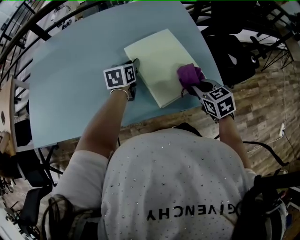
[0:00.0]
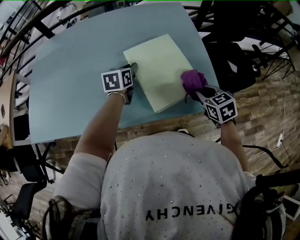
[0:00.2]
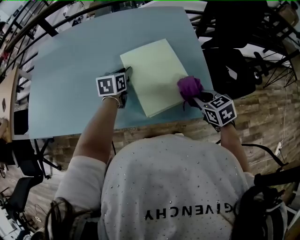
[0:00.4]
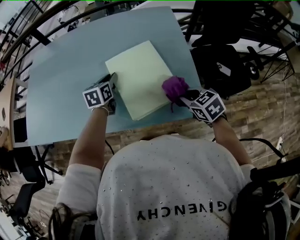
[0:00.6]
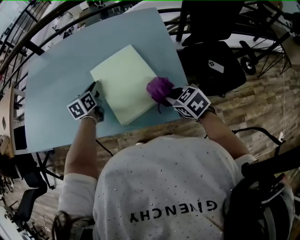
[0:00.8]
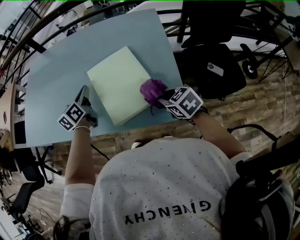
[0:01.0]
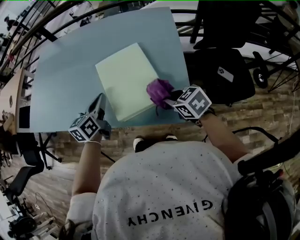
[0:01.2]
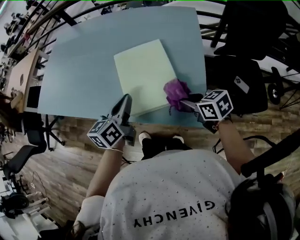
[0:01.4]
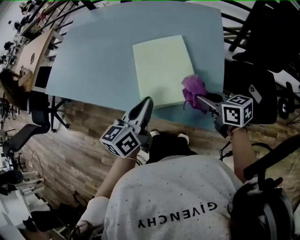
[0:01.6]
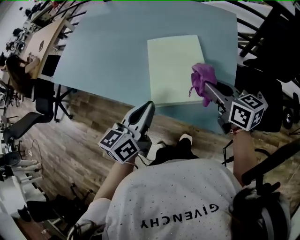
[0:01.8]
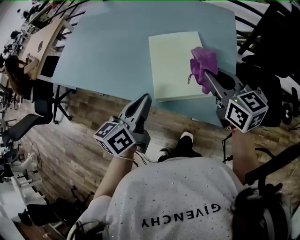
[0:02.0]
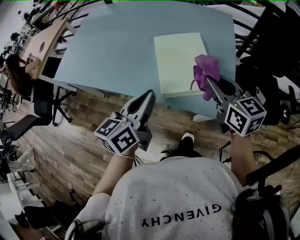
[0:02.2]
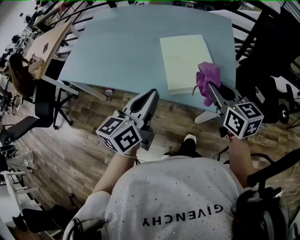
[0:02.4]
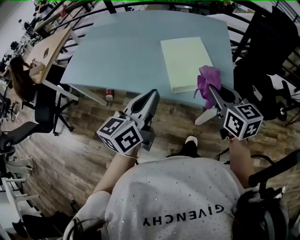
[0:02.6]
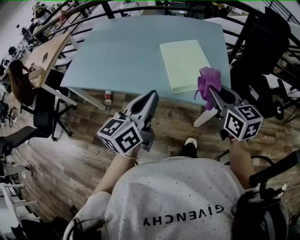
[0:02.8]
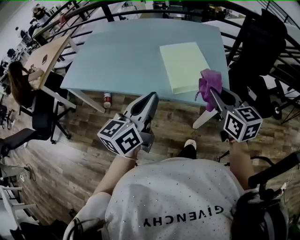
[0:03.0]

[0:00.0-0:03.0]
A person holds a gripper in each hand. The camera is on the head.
0:00.0 to 0:01.6: The left gripper moves roughly 25 cm, changes its angle by some 30 degrees, and closes, while the right gripper changes place by roughly 10 cm, and swivels some 40 degrees.
0:01.6 to 0:03.0: The right gripper moves upward, backward and to the left, approximately 20 cm, and swivels some 40 degrees. The left gripper goes roughly 20 cm to the left, backward and upward.

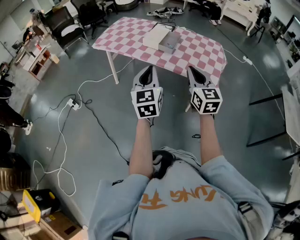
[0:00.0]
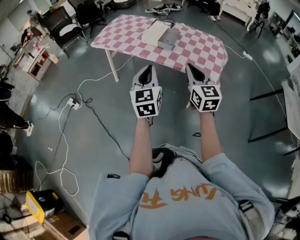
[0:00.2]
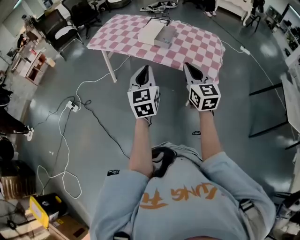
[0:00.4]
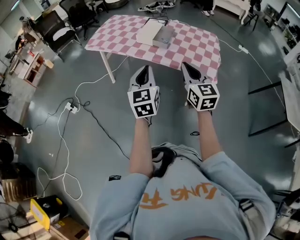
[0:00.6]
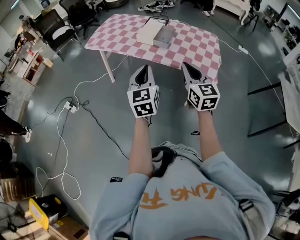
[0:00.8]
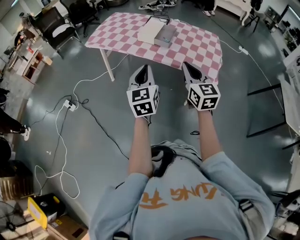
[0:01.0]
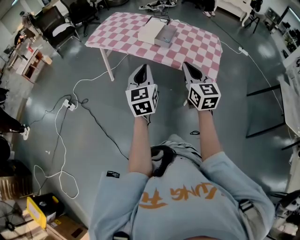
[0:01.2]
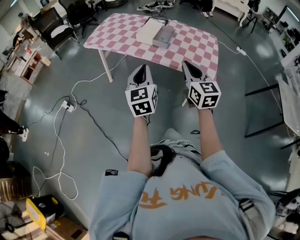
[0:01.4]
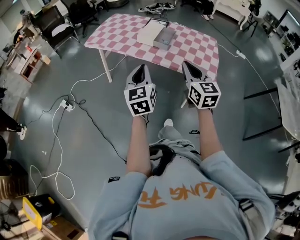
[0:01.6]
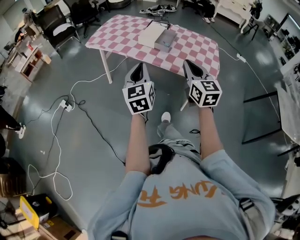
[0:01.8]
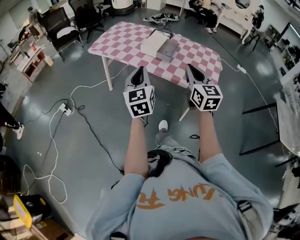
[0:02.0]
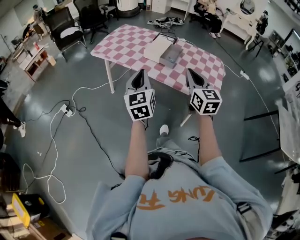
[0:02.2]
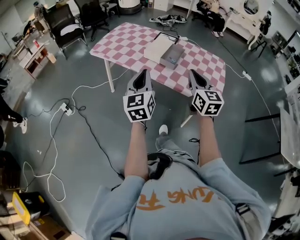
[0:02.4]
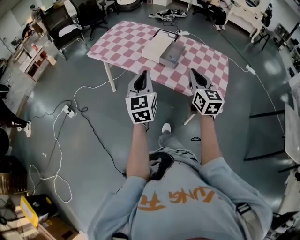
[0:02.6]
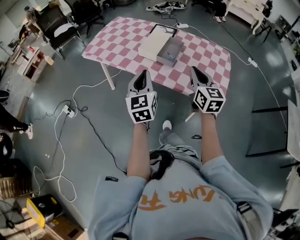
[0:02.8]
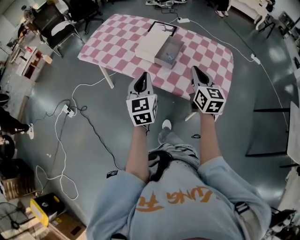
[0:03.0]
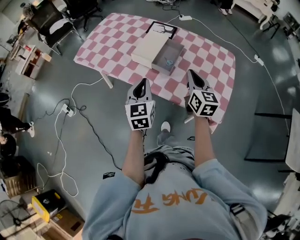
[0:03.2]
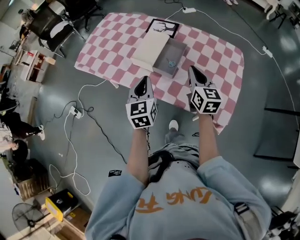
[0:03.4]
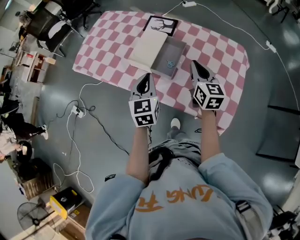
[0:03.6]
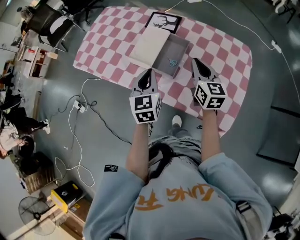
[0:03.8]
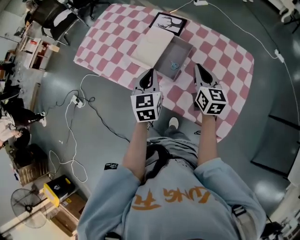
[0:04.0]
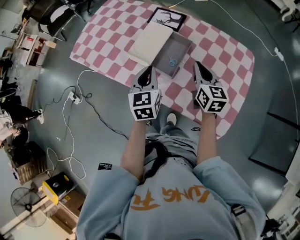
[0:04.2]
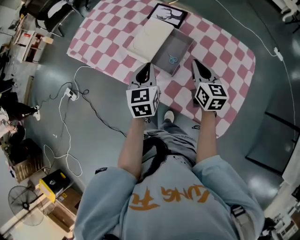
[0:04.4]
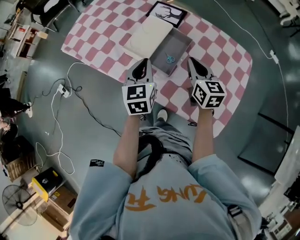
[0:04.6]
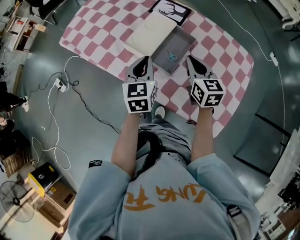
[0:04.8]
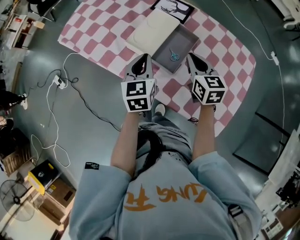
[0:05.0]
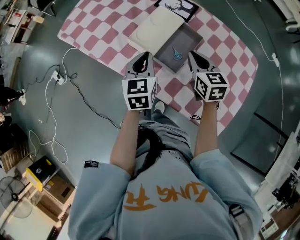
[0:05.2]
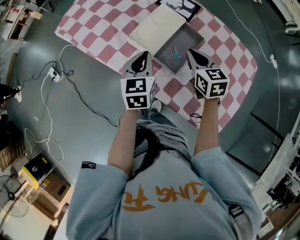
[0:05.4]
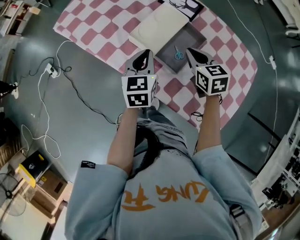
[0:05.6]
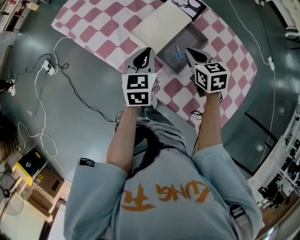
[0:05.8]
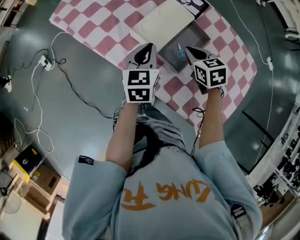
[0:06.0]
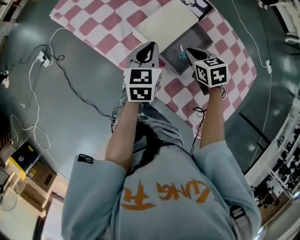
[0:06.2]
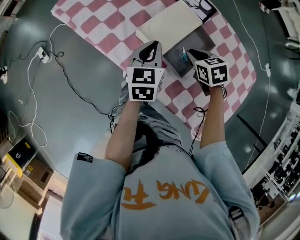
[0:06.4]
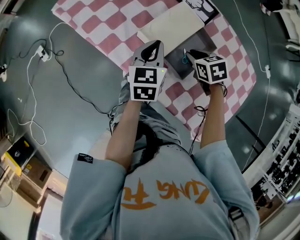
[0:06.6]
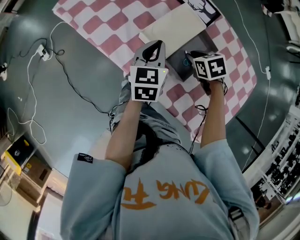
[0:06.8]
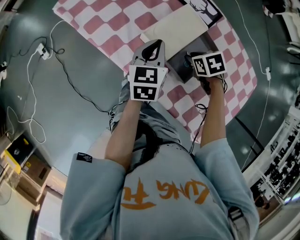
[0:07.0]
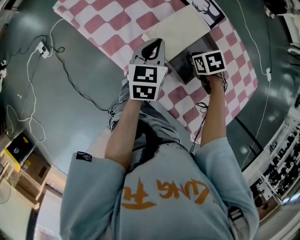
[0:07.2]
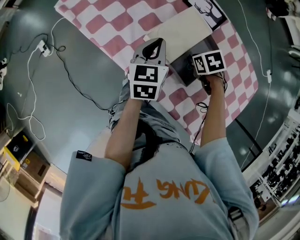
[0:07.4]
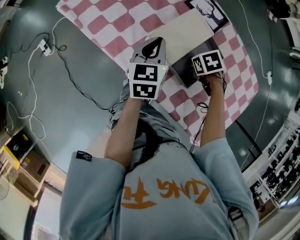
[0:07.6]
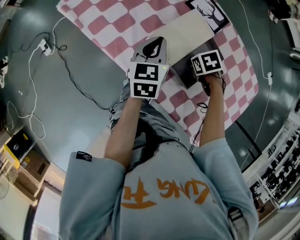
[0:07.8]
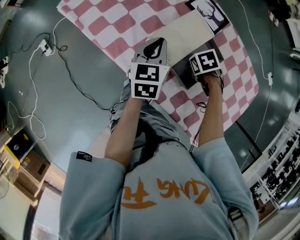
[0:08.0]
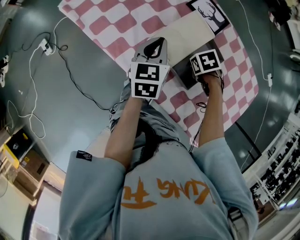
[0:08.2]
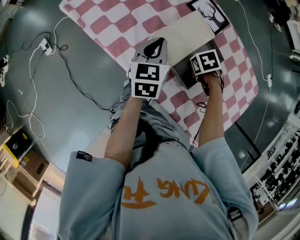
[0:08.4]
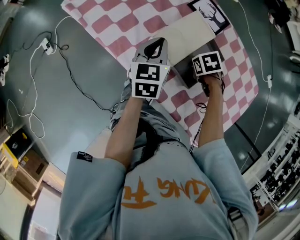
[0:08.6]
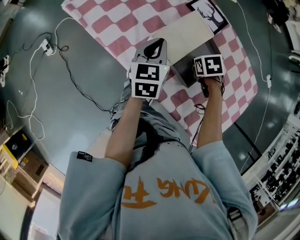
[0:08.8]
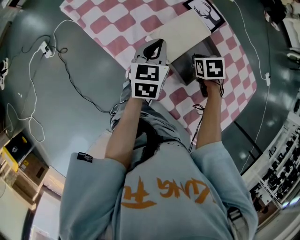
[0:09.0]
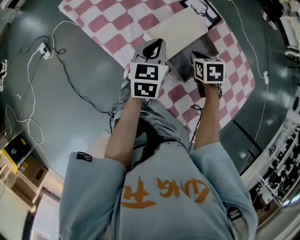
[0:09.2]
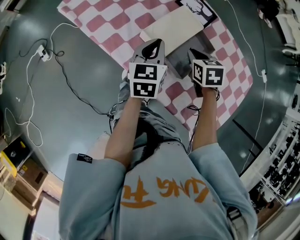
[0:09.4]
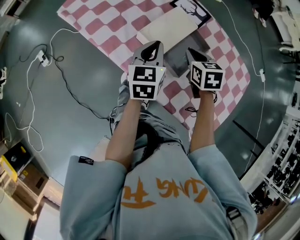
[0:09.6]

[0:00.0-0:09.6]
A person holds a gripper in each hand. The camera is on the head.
0:00.0 to 0:01.6: The left gripper ends up approximately 5 cm from where it was.
0:01.6 to 0:03.2: The left gripper travels forward by some 30 cm; the right gripper is displaced forward and to the right by about 35 cm.
0:03.2 to 0:04.8: The two grippers go about 20 cm forward and downward.
0:04.8 to 0:06.4: The left gripper goes roughly 10 cm forward and downward; the right gripper shifts about 15 cm downward, forward and to the left, and points its fingers roughly 30 degrees further downward.
0:06.4 to 0:08.0: The right gripper heads downward, covering about 5 cm, and turns by roughly 30 degrees. The left gripper moves about 5 cm.
0:08.0 to 0:09.6: The right gripper moves upward, approximately 15 cm, and tilts its fingers about 40 degrees upward, while the left gripper ends up roughly 10 cm from where it was.

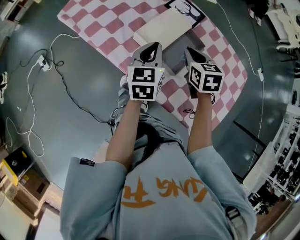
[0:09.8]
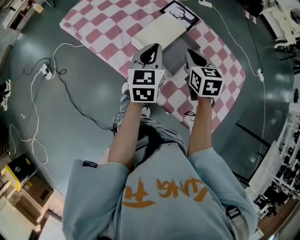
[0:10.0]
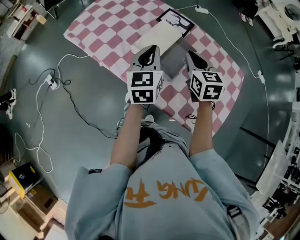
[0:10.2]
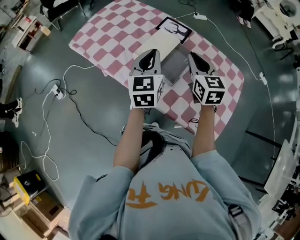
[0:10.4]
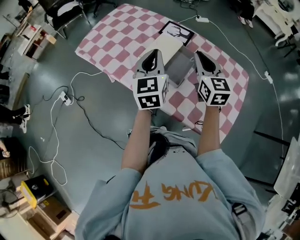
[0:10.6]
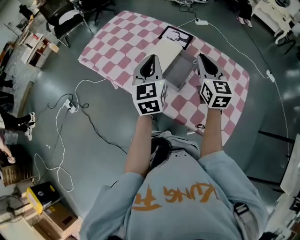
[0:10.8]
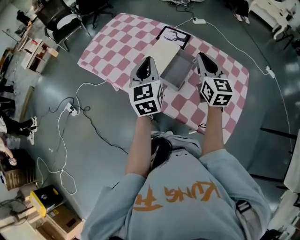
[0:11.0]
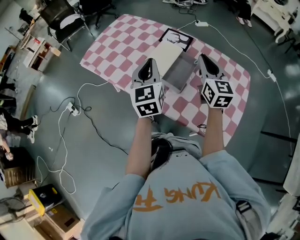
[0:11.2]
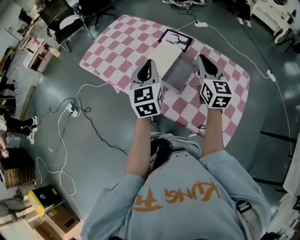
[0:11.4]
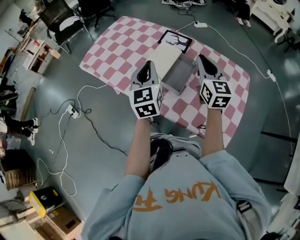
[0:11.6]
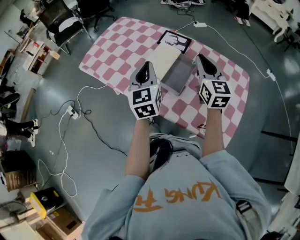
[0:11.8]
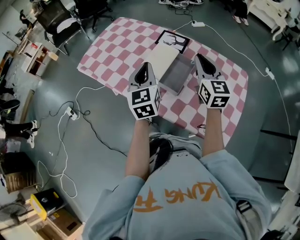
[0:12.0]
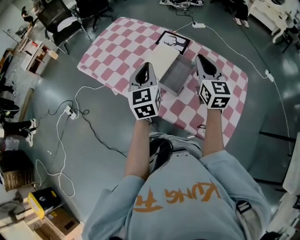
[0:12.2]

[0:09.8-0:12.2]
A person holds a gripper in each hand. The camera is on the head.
0:09.8 to 0:11.0: The right gripper moves upward and to the right, approximately 15 cm, and points its fingers some 40 degrees further upward. Meanwhile the left gripper heads upward and backward, covering some 15 cm.
0:11.0 to 0:12.2: The grippers move only a little.

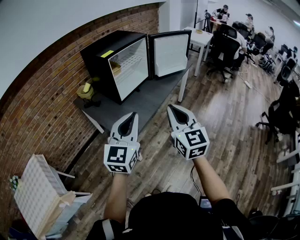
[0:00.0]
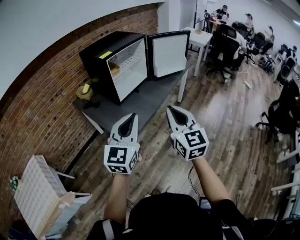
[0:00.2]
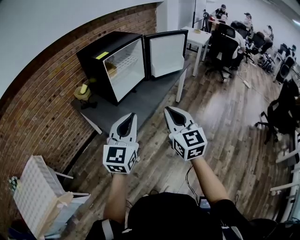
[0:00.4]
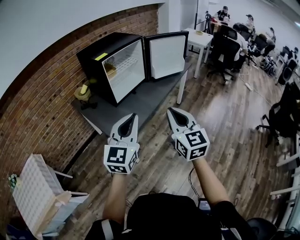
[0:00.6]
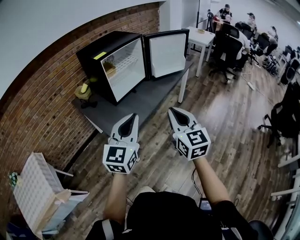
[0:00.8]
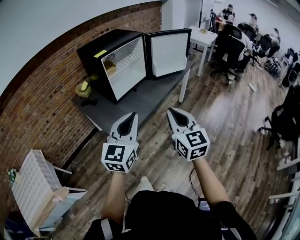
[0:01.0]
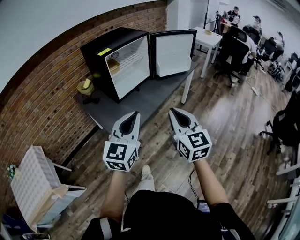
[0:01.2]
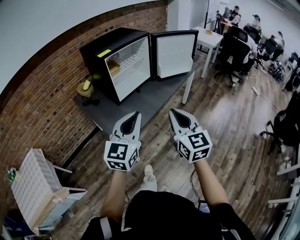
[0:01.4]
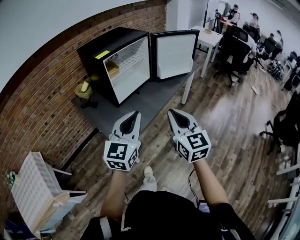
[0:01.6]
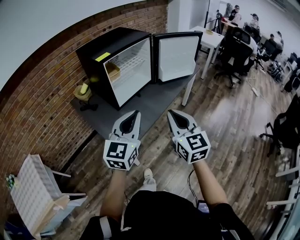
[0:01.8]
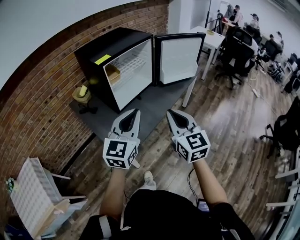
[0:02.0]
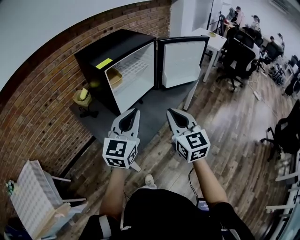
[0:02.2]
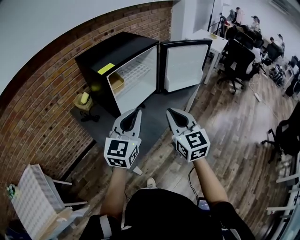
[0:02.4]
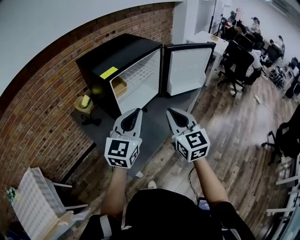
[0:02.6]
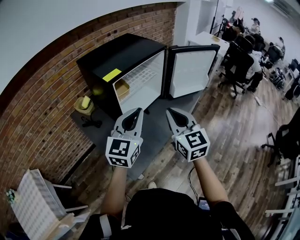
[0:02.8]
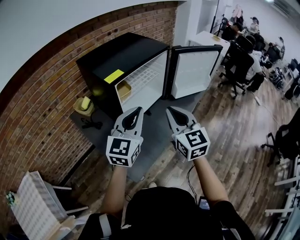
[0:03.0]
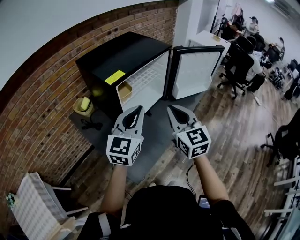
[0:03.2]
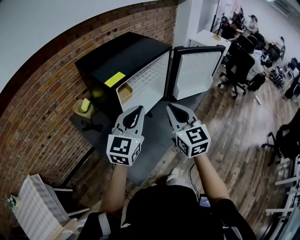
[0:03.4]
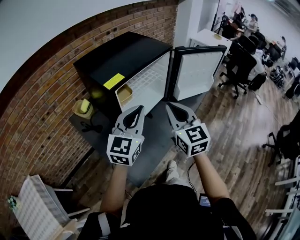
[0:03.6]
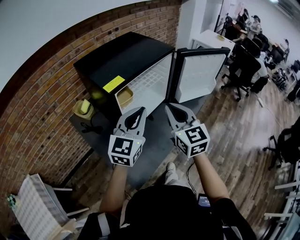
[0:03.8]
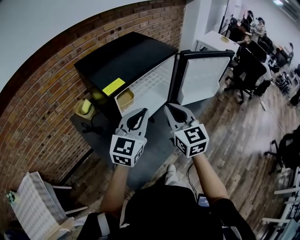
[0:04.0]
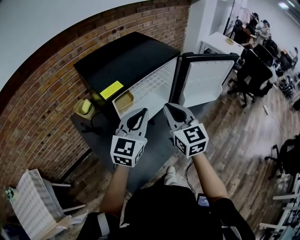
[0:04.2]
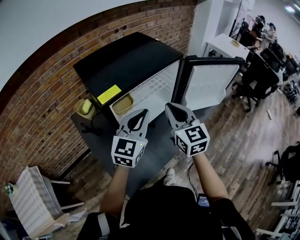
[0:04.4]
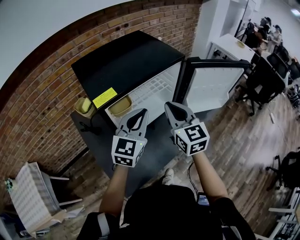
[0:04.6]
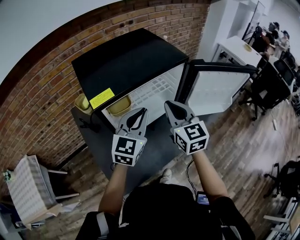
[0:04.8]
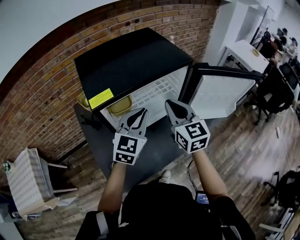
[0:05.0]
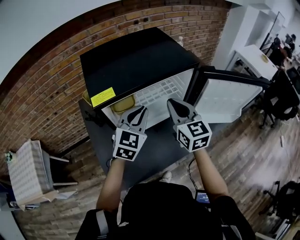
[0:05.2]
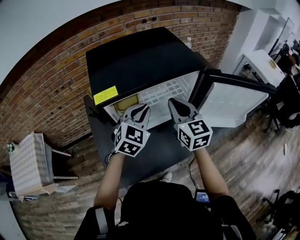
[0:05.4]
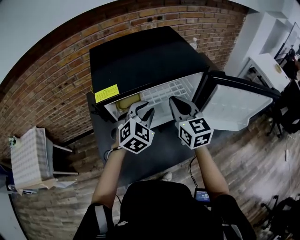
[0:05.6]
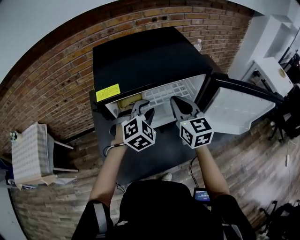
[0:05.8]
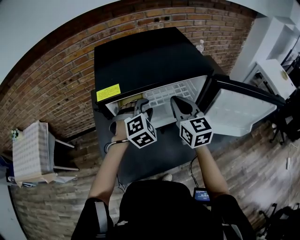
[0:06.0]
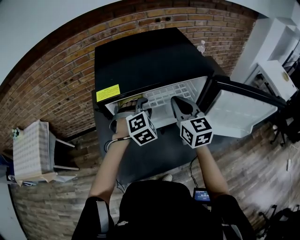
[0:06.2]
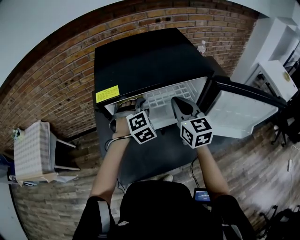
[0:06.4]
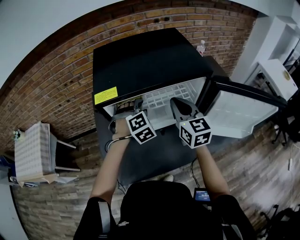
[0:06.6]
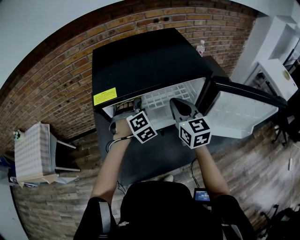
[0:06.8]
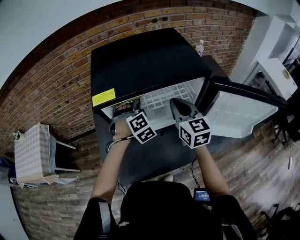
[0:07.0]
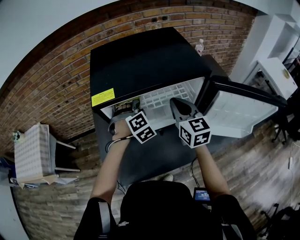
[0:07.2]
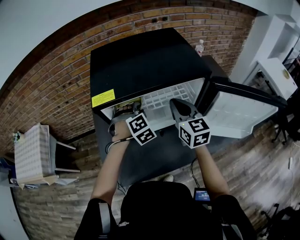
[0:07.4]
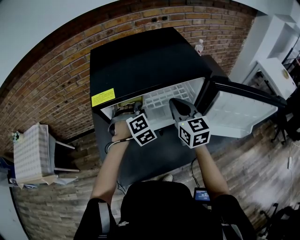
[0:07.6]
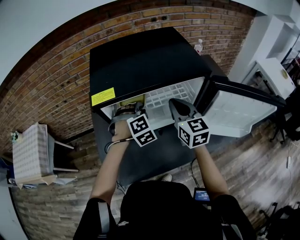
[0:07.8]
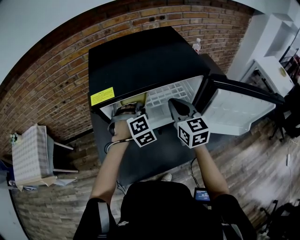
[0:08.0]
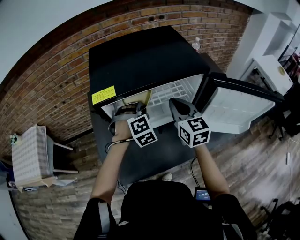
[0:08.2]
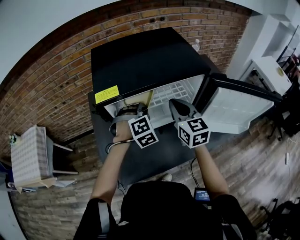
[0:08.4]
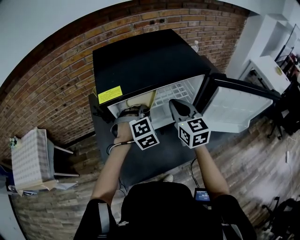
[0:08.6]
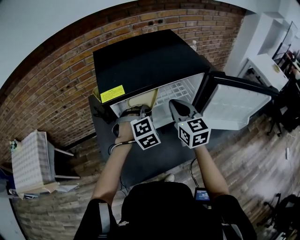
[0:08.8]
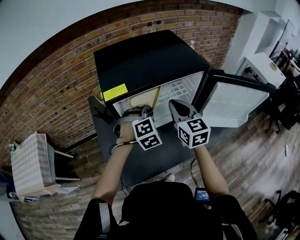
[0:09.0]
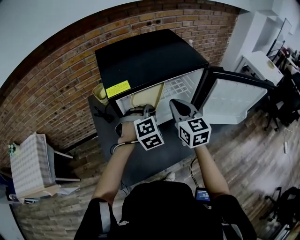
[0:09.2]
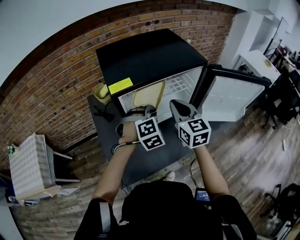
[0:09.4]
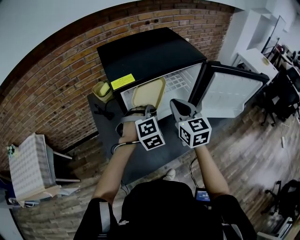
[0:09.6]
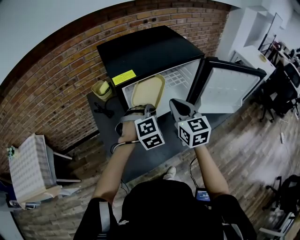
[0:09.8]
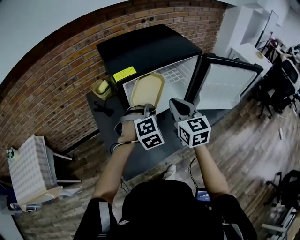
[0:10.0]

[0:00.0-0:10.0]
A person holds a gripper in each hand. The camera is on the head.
0:00.0 to 0:01.4: The left gripper travels forward and to the right by approximately 10 cm. The right gripper travels forward by approximately 5 cm.
0:01.4 to 0:02.8: The left gripper is displaced forward by approximately 25 cm; the right gripper goes approximately 30 cm forward and to the left.
0:02.8 to 0:04.2: Both grippers travel together forward, about 15 cm.
0:04.2 to 0:05.8: The right gripper ends up some 15 cm from where it was, and rotates approximately 20 degrees; the left gripper moves some 15 cm, tilts its fingers some 40 degrees downward, and opens its fingers.
0:05.8 to 0:07.2: The left gripper is displaced forward and downward by some 10 cm, and swivels some 30 degrees.
0:07.2 to 0:08.6: The left gripper moves approximately 5 cm, and closes its fingers.
0:08.6 to 0:10.0: The right gripper moves backward and to the left, roughly 15 cm; the left gripper is displaced backward by about 10 cm.
